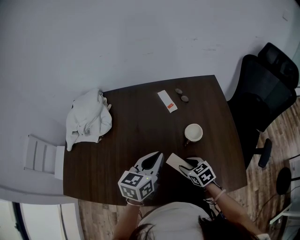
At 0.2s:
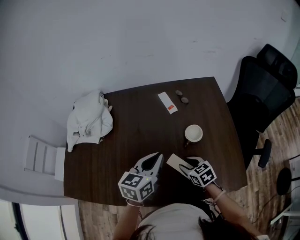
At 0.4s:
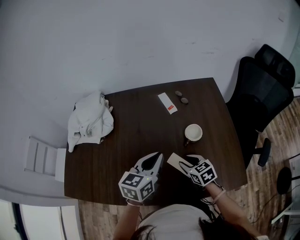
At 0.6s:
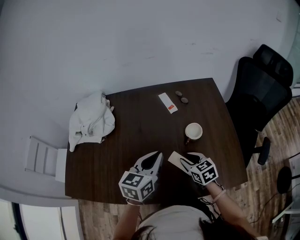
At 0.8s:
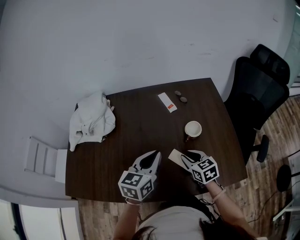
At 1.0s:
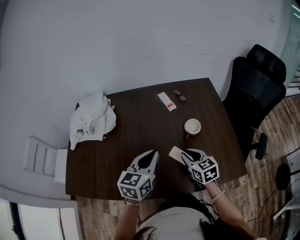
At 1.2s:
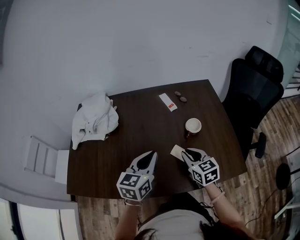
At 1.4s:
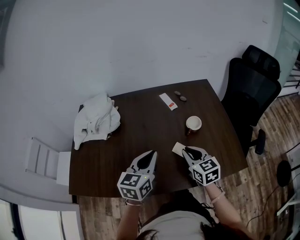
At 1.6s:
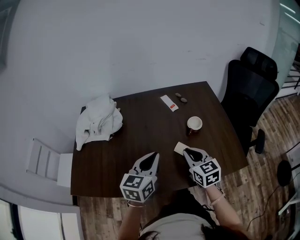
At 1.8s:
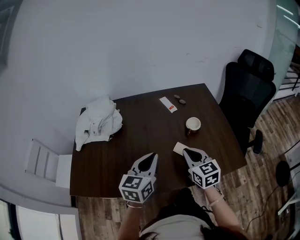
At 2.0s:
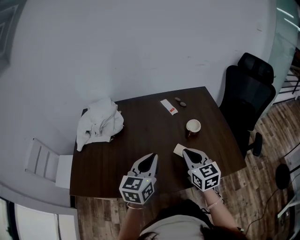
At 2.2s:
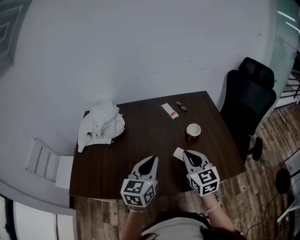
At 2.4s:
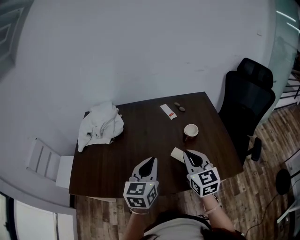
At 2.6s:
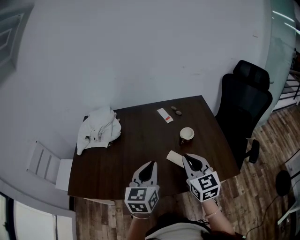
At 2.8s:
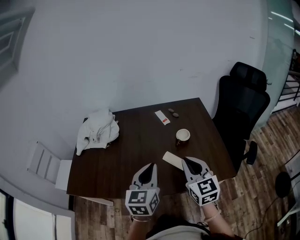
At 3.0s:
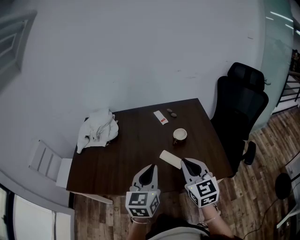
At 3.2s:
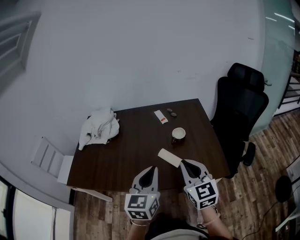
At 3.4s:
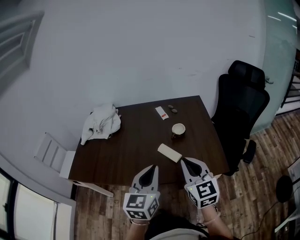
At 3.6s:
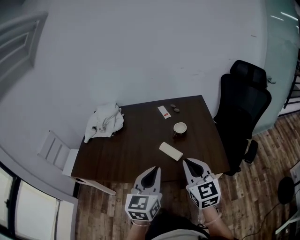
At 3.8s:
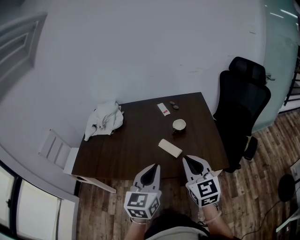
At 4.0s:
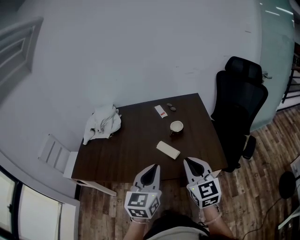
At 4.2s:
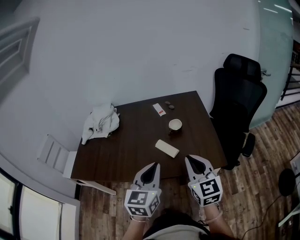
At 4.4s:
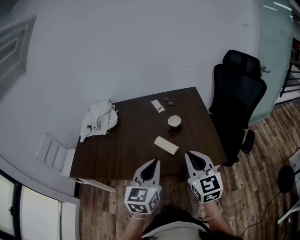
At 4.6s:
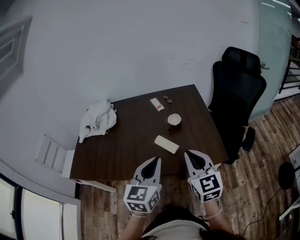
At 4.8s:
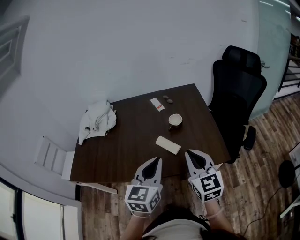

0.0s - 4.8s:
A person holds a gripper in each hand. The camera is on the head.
0.0s - 1.6s: The right gripper shifts about 20 cm upward and backward, swivels roughly 30 degrees, and closes. Meanwhile the left gripper heads backward, to the left and upward, covering about 15 cm.
1.6s - 3.2s: The left gripper moves backward, to the right and upward, approximately 20 cm. The right gripper is displaced backward, upward and to the right by roughly 25 cm.

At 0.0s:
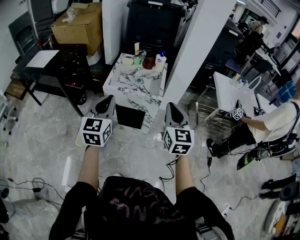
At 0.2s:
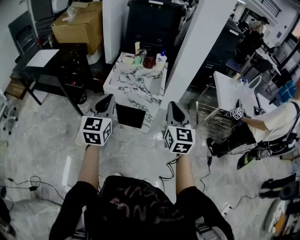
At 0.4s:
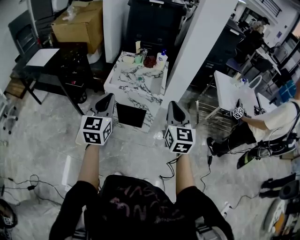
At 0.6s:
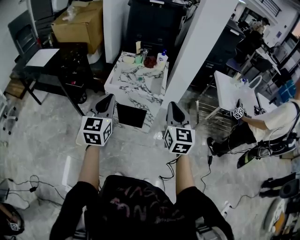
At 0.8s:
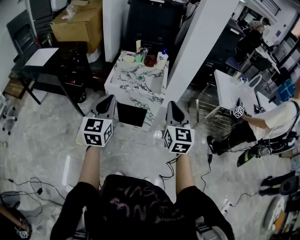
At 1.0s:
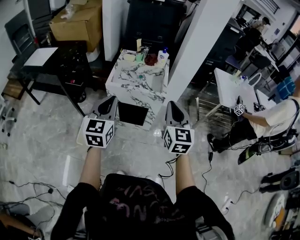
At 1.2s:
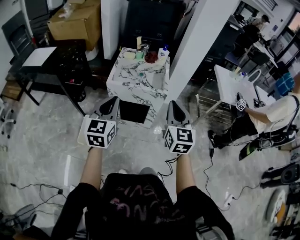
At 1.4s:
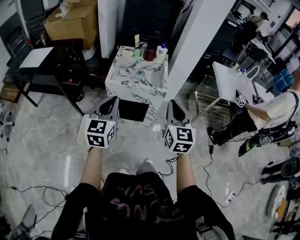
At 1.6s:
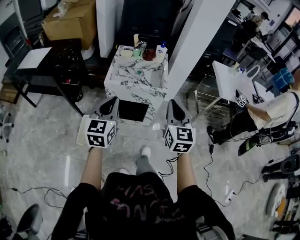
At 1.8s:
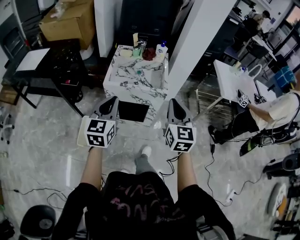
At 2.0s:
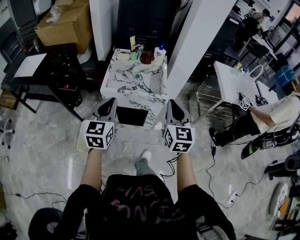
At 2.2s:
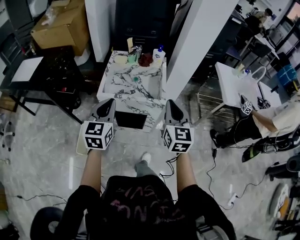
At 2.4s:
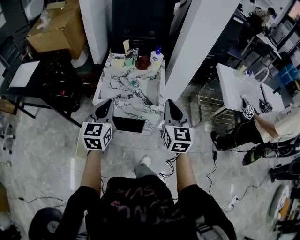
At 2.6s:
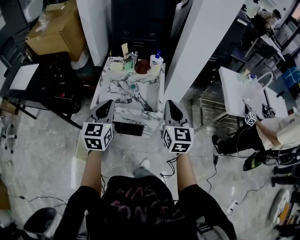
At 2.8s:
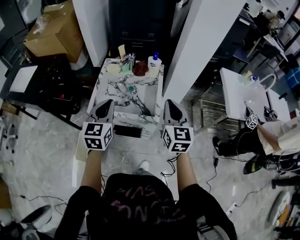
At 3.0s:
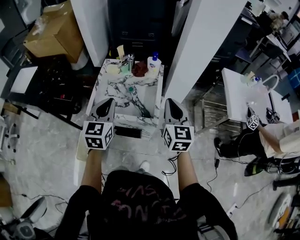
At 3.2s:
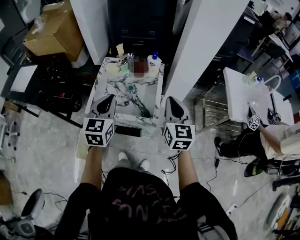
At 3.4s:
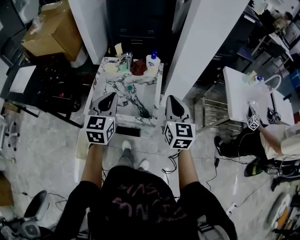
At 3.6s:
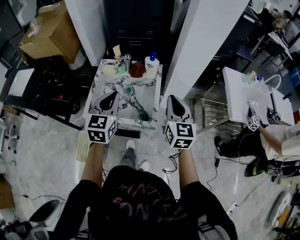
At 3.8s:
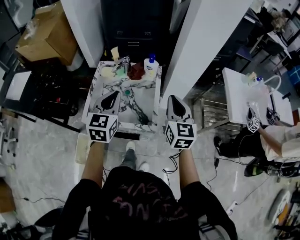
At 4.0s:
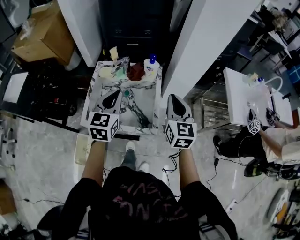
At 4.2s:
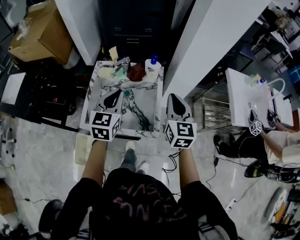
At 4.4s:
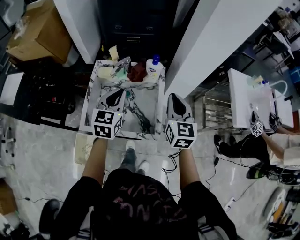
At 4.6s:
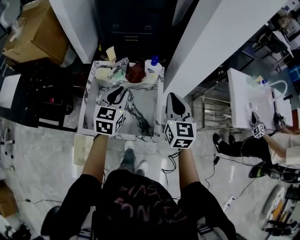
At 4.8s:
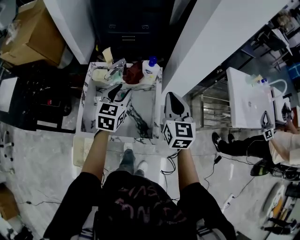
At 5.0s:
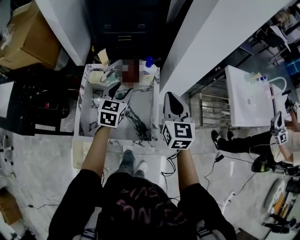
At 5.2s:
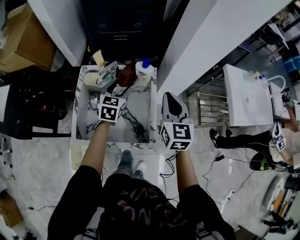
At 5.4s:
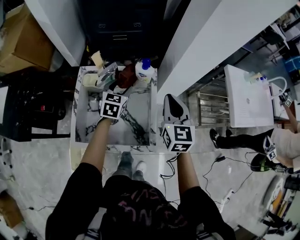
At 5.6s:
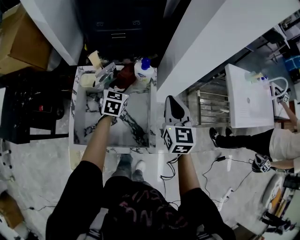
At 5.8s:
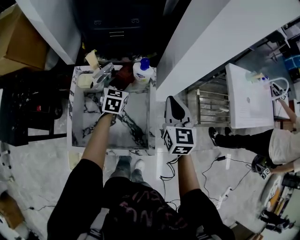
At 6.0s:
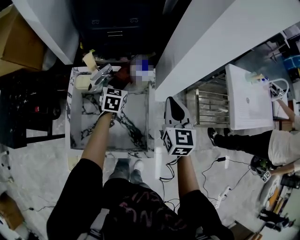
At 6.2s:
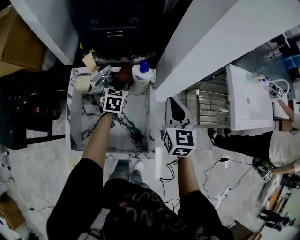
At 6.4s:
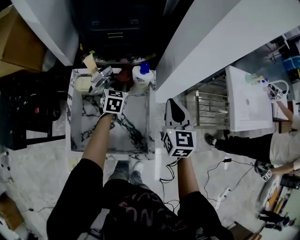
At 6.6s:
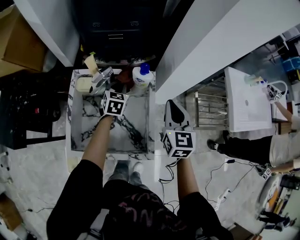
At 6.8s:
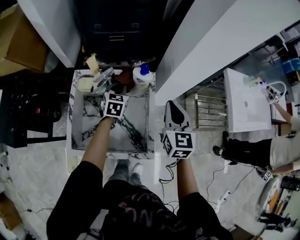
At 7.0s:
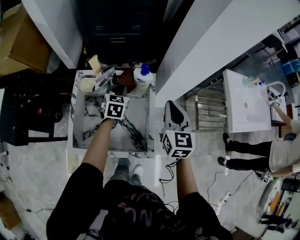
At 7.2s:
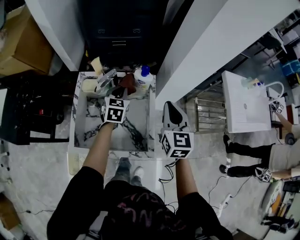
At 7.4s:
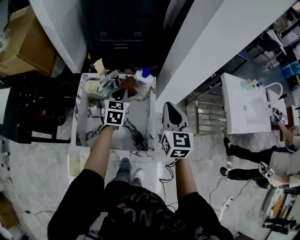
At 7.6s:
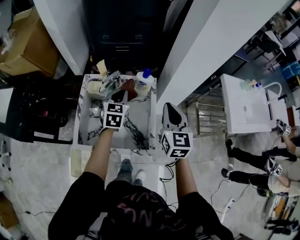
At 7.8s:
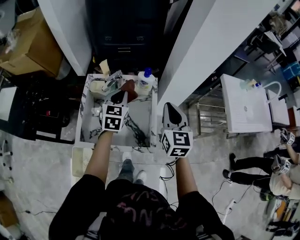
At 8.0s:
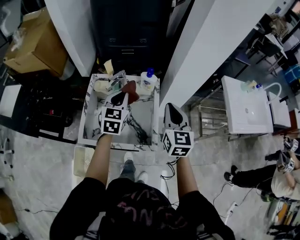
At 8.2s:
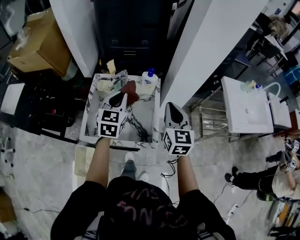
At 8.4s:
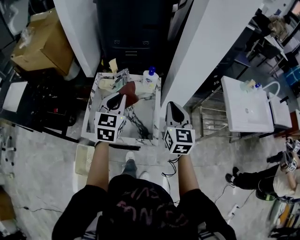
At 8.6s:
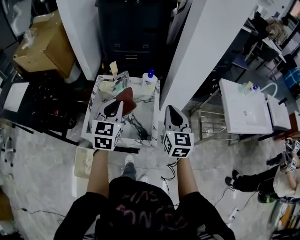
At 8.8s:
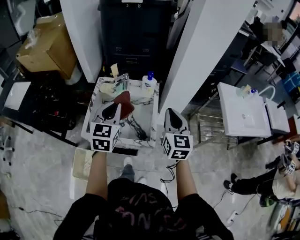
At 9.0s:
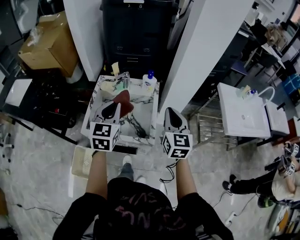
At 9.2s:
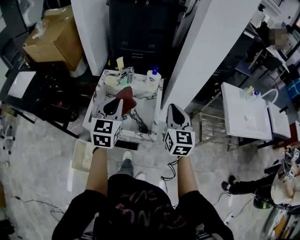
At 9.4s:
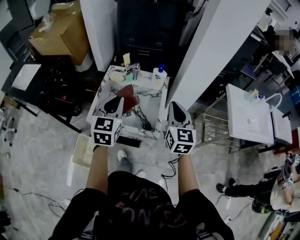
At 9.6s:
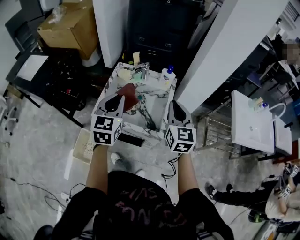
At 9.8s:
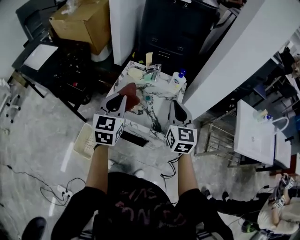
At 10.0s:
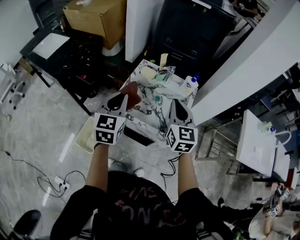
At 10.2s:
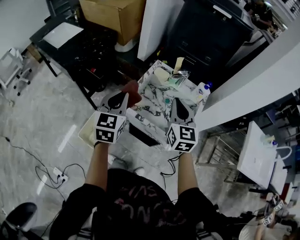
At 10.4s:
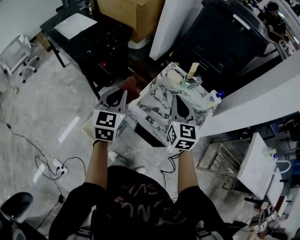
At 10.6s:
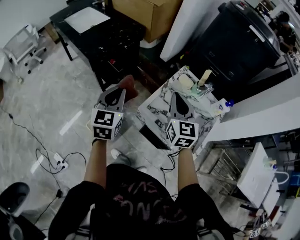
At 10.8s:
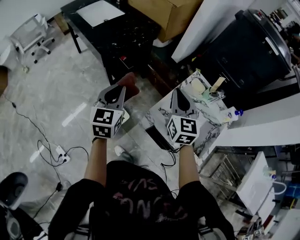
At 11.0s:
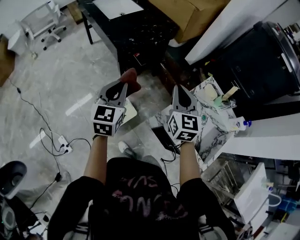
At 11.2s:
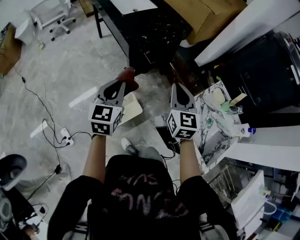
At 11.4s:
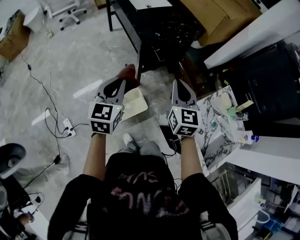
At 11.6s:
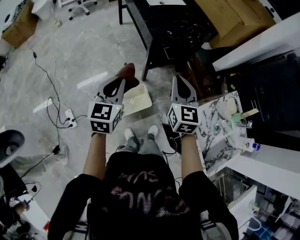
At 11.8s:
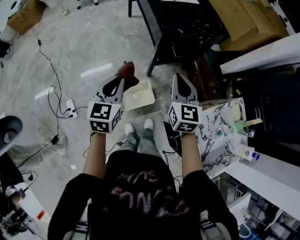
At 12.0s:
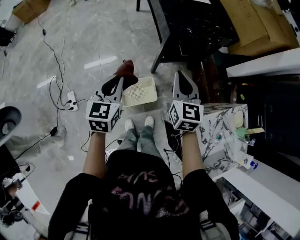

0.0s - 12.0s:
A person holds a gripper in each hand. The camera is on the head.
0.0s - 1.6s: The left gripper shifts by roughly 5 cm; the right gripper heads to the left, covering some 5 cm.
1.6s - 3.0s: The two grippers go roughly 30 cm forward.
3.0s - 4.4s: Both grippers move forward, about 15 cm.
4.4s - 6.0s: The left gripper goes roughly 30 cm forward and downward, and opens up. Meanwhile the right gripper goes roughly 10 cm forward and downward.
6.0s - 7.6s: The left gripper is displaced upward and backward by roughly 15 cm, and closes; the right gripper heads backward and upward, covering roughly 10 cm.
7.6s - 9.0s: The left gripper heads backward and upward, covering some 25 cm; the right gripper is displaced backward by roughly 10 cm.
9.0s - 10.4s: The right gripper changes place by roughly 30 cm, and turns by about 30 degrees, while the left gripper moves some 30 cm, and swivels about 30 degrees.
10.4s - 12.0s: The right gripper moves approximately 40 cm, and changes its angle by about 40 degrees; the left gripper moves approximately 35 cm, and rotates approximately 40 degrees.

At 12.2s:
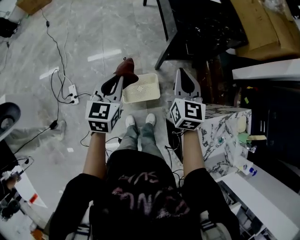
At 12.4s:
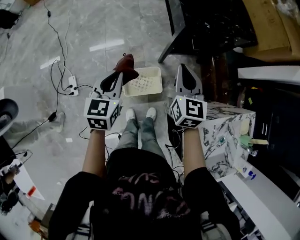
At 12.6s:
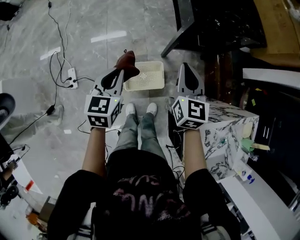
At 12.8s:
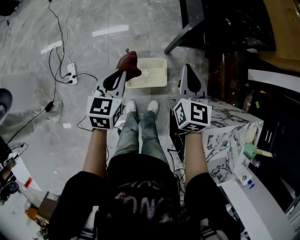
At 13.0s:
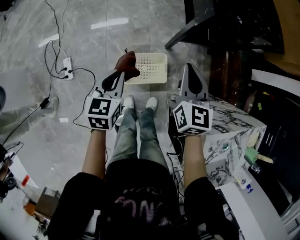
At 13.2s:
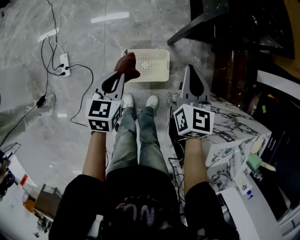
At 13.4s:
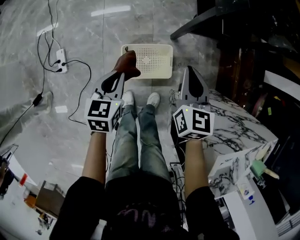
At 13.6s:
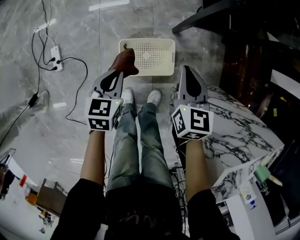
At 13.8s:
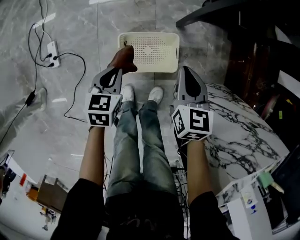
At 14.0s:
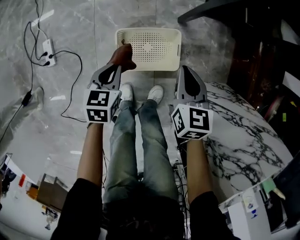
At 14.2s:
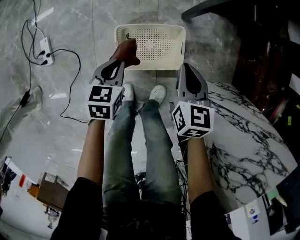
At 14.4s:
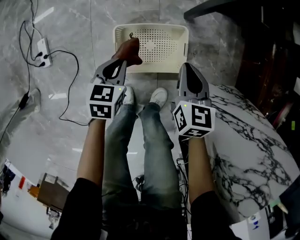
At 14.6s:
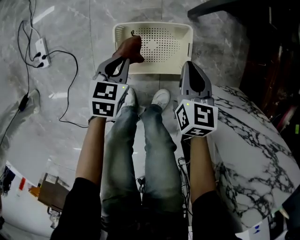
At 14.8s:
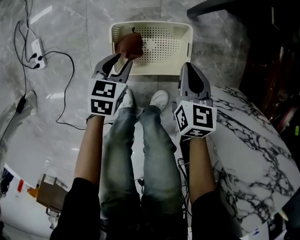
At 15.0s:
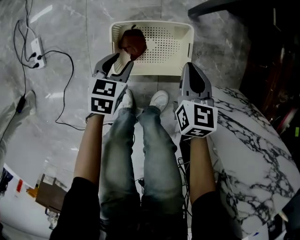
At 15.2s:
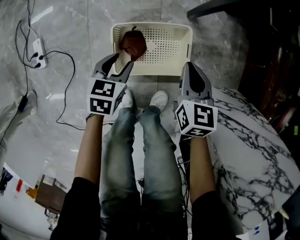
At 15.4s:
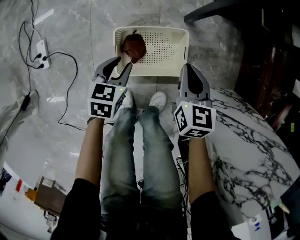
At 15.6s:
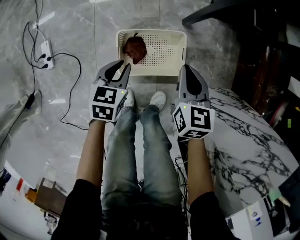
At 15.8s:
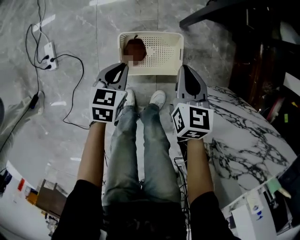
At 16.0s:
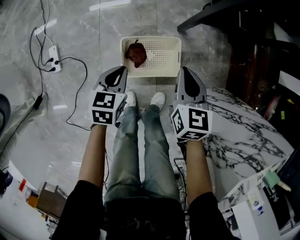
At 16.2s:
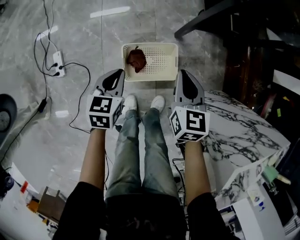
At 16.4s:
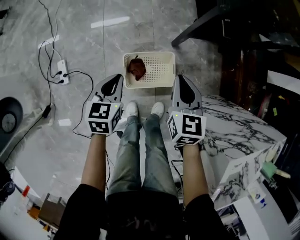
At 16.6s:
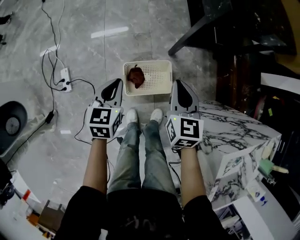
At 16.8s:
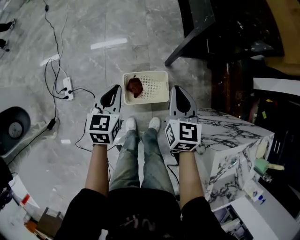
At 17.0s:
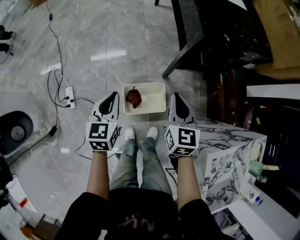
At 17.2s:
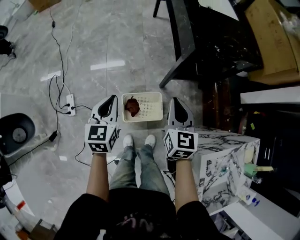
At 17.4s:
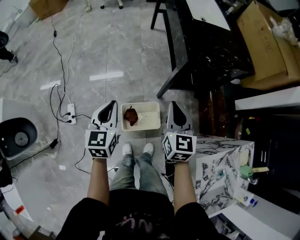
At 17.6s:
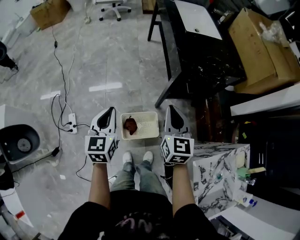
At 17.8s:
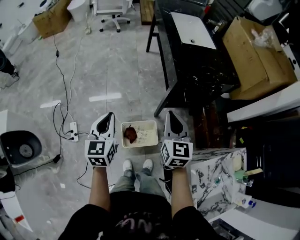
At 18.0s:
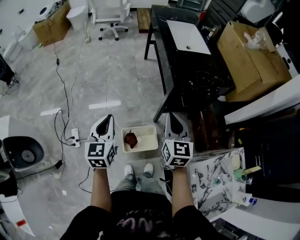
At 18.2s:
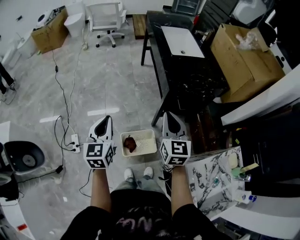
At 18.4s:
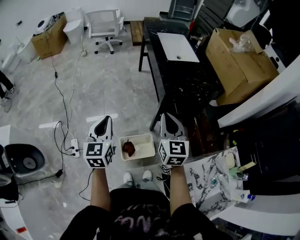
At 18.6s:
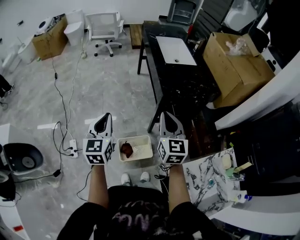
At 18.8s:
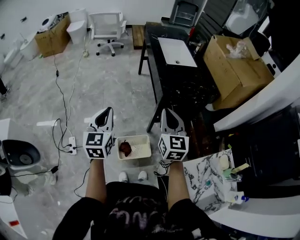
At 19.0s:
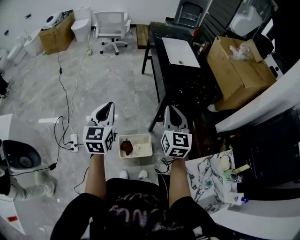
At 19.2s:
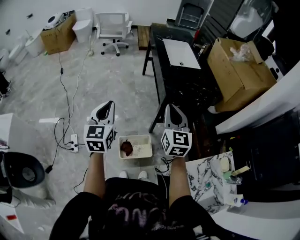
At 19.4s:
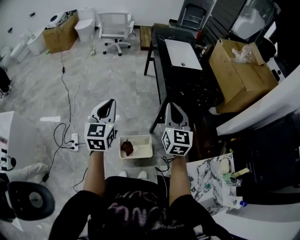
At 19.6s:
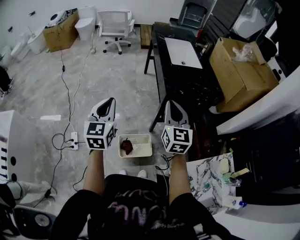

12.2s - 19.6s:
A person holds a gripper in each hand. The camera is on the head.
12.2s - 13.6s: Both grippers move downward, some 35 cm. The left gripper turns by about 20 degrees.
13.6s - 15.2s: Both grippers travel together downward, about 25 cm. The left gripper opens up.
15.2s - 16.6s: Both grippers move upward, about 35 cm. The left gripper closes up.
16.6s - 18.2s: The two grippers go about 35 cm upward. The left gripper swivels approximately 30 degrees. The right gripper turns by approximately 20 degrees.
18.2s - 19.6s: Both grippers move upward, approximately 10 cm.
